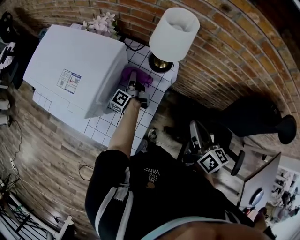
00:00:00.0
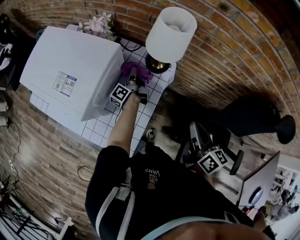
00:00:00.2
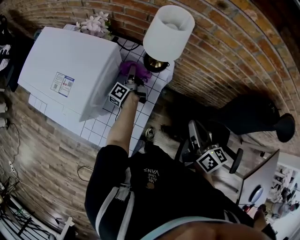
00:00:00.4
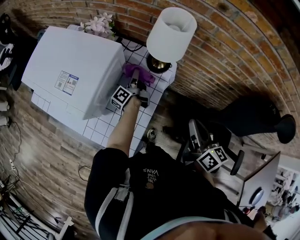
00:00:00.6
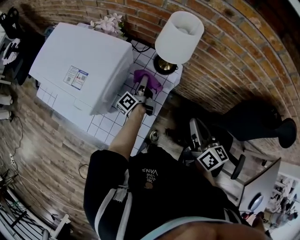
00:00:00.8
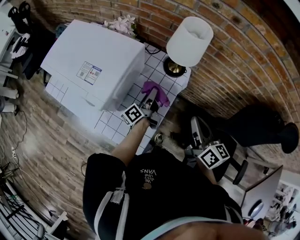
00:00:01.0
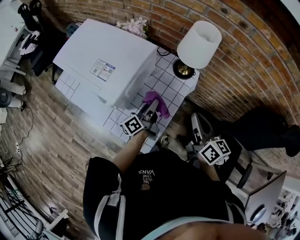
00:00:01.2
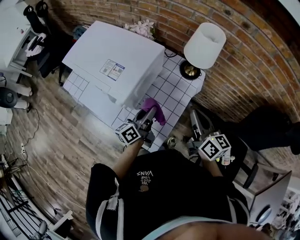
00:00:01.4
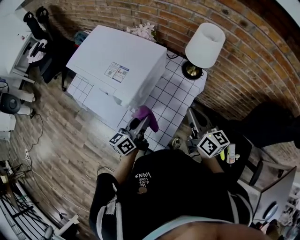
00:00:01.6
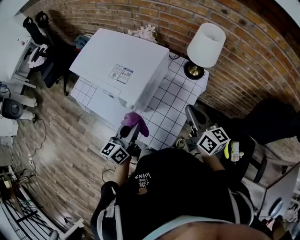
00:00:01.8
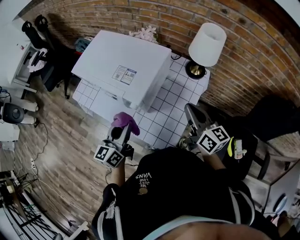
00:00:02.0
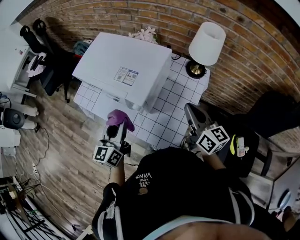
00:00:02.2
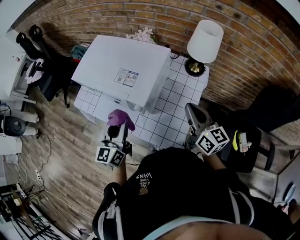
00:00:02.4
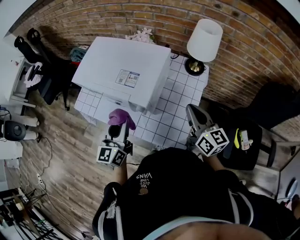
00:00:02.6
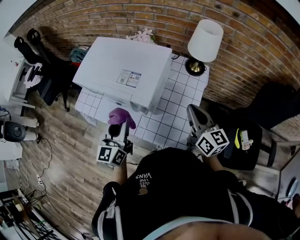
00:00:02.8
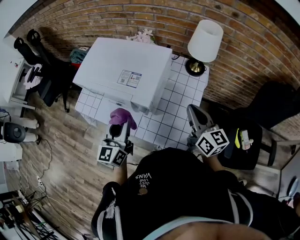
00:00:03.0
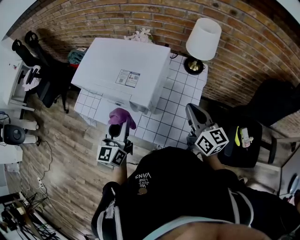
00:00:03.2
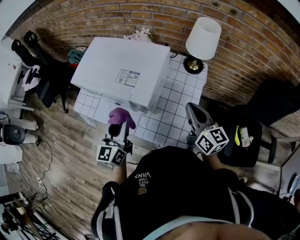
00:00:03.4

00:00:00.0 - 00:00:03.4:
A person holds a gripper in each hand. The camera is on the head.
00:00:00.0 - 00:00:01.6: The right gripper travels to the left by roughly 15 cm; the left gripper shifts roughly 30 cm backward, upward and to the left, and changes its angle by about 40 degrees.
00:00:01.6 - 00:00:03.4: The left gripper travels to the left and upward by some 20 cm, and swivels about 30 degrees. Meanwhile the right gripper shifts approximately 10 cm to the left.

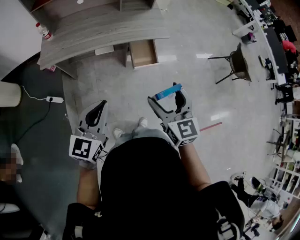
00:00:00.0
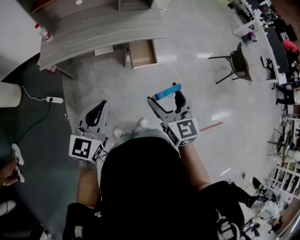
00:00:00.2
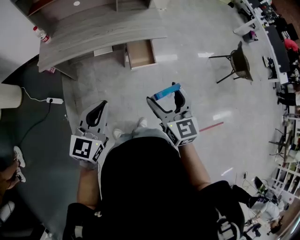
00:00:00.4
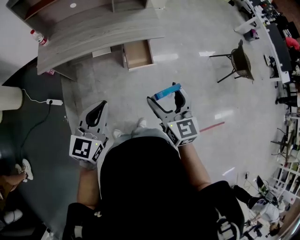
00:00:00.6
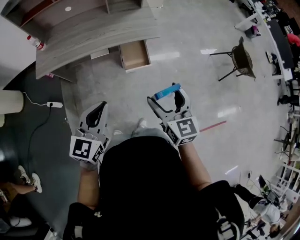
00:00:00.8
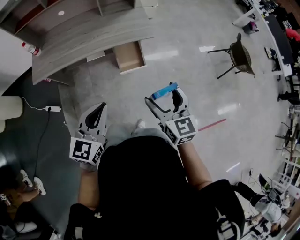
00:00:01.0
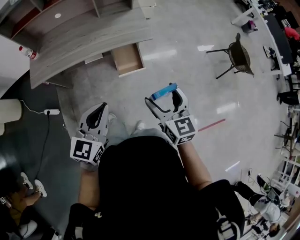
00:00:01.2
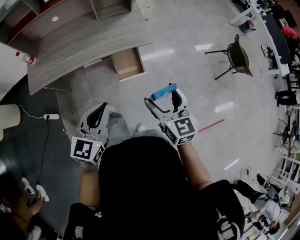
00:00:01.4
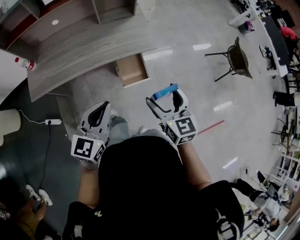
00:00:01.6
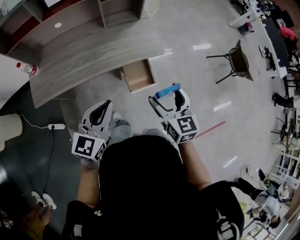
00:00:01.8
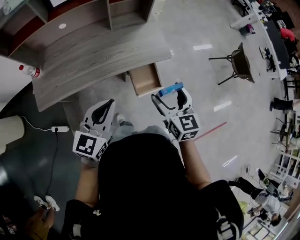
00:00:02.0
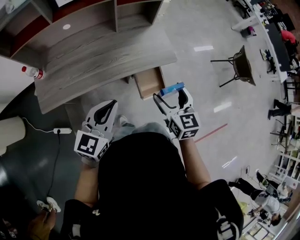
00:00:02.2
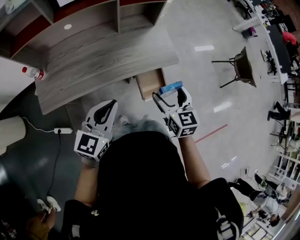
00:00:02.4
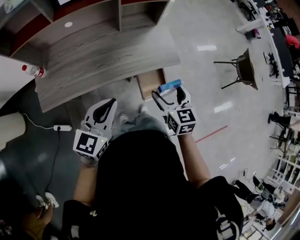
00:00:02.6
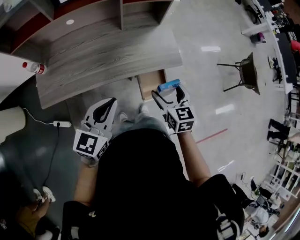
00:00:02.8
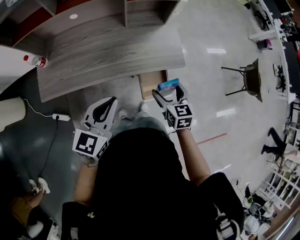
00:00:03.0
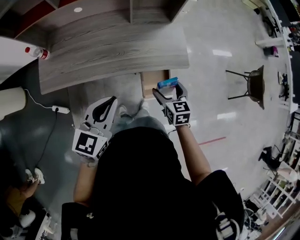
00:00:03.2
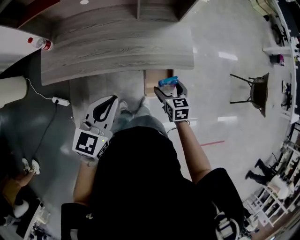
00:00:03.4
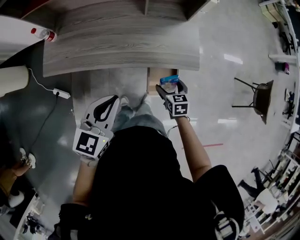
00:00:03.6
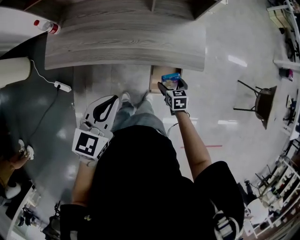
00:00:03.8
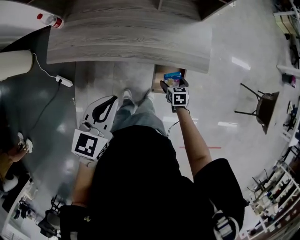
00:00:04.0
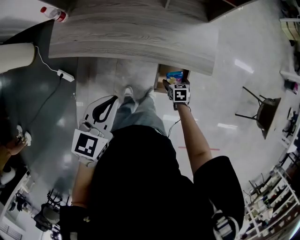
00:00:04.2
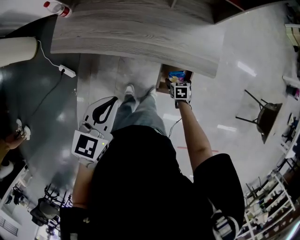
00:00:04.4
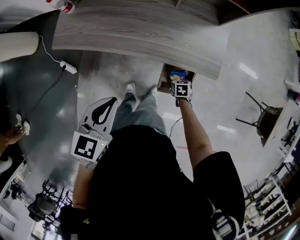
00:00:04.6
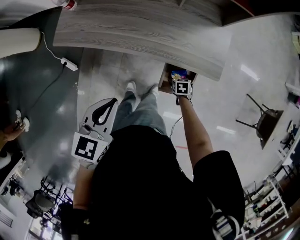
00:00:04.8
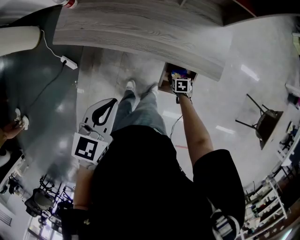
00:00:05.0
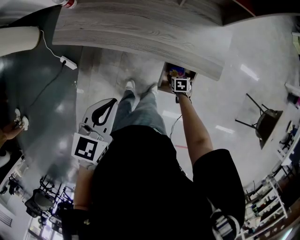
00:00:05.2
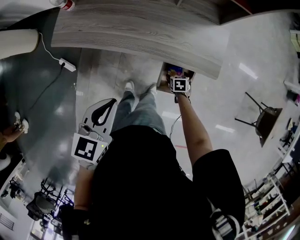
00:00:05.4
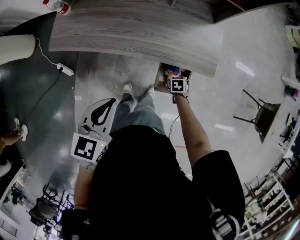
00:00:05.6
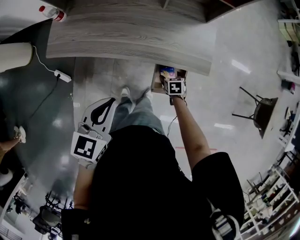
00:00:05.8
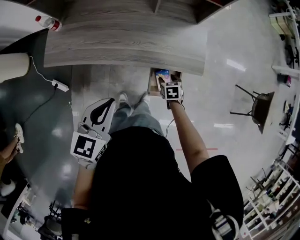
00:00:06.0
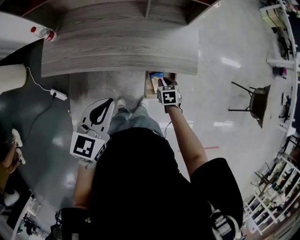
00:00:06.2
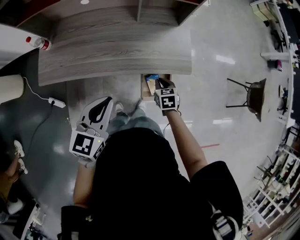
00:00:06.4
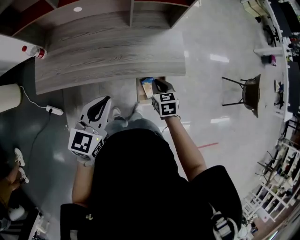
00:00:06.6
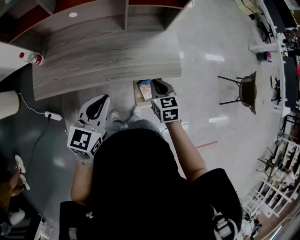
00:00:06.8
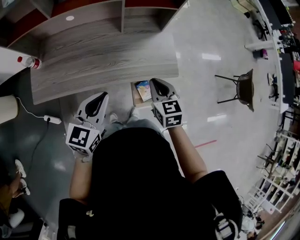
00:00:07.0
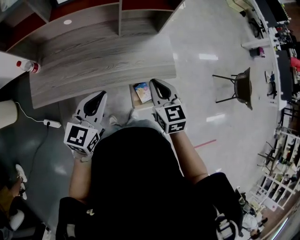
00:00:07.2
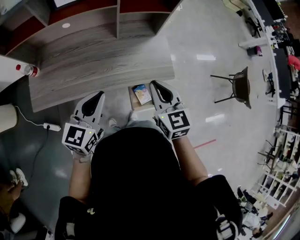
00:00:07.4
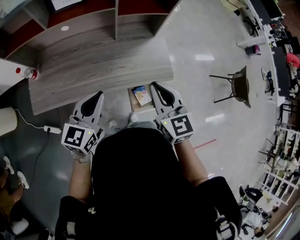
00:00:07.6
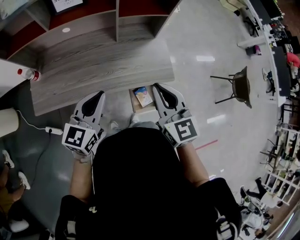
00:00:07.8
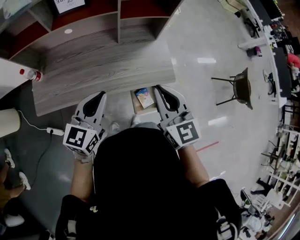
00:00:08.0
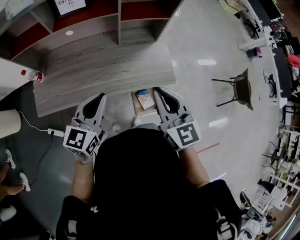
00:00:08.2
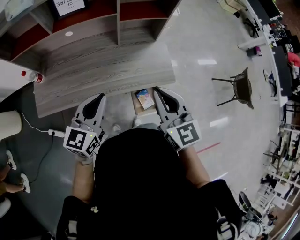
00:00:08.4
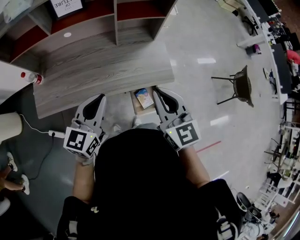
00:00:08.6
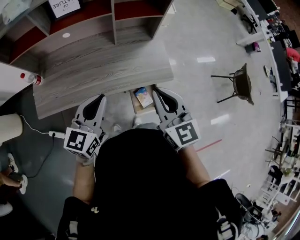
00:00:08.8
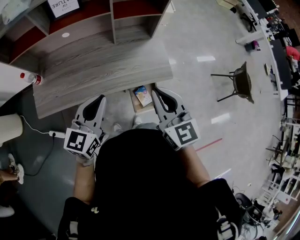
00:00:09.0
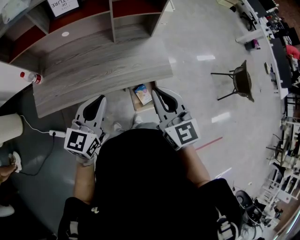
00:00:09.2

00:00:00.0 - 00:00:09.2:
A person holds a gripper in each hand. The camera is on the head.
00:00:00.0 - 00:00:01.6: The two grippers go roughly 15 cm forward and to the right.
00:00:01.6 - 00:00:03.0: The right gripper is displaced forward, downward and to the left by some 20 cm. Meanwhile the left gripper moves forward and to the left, roughly 15 cm.
00:00:03.0 - 00:00:04.6: The left gripper shifts about 5 cm downward, and changes its angle by about 30 degrees. The right gripper is displaced downward by some 30 cm, and points its fingers some 30 degrees further downward.
00:00:04.6 - 00:00:06.2: The right gripper goes some 10 cm upward, and closes up.
00:00:06.2 - 00:00:07.6: The left gripper moves forward, approximately 10 cm. Meanwhile the right gripper is displaced upward by roughly 35 cm, and angles its fingers upward, by approximately 40 degrees.
00:00:07.6 - 00:00:09.2: The right gripper changes place by approximately 5 cm.

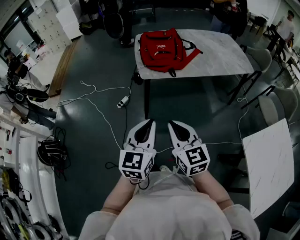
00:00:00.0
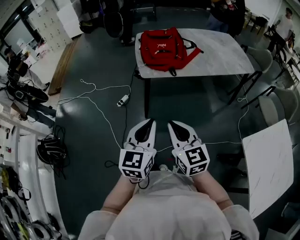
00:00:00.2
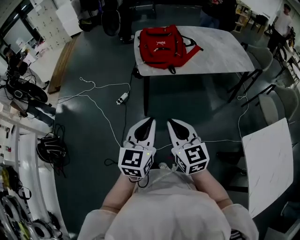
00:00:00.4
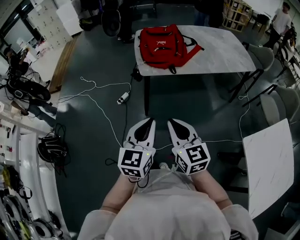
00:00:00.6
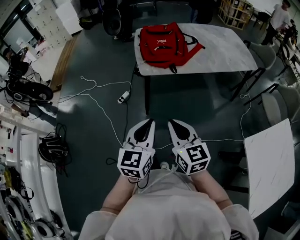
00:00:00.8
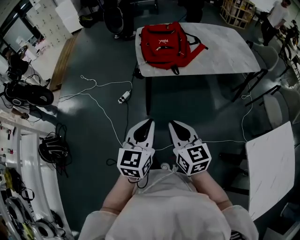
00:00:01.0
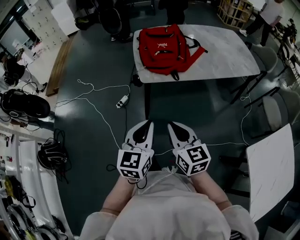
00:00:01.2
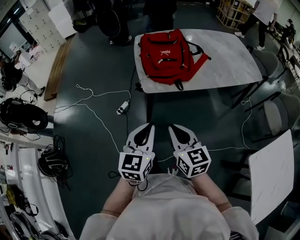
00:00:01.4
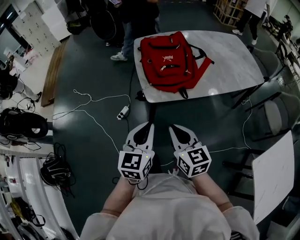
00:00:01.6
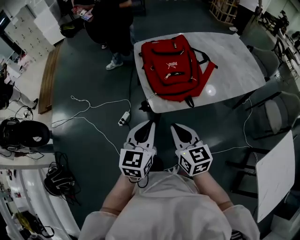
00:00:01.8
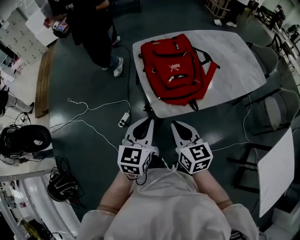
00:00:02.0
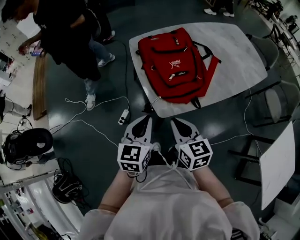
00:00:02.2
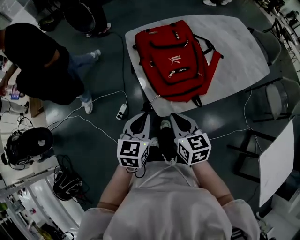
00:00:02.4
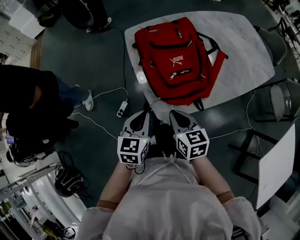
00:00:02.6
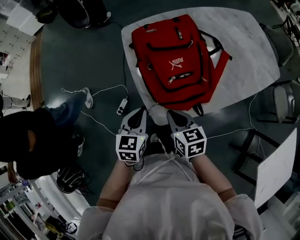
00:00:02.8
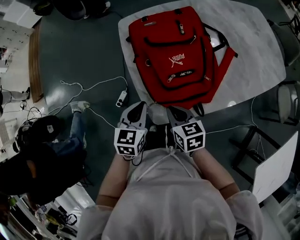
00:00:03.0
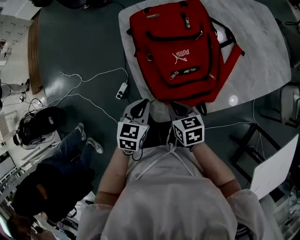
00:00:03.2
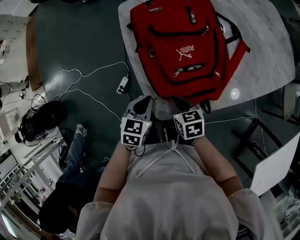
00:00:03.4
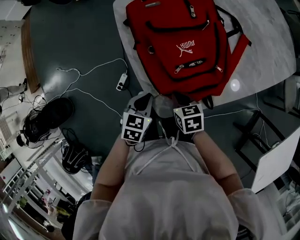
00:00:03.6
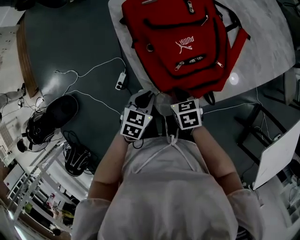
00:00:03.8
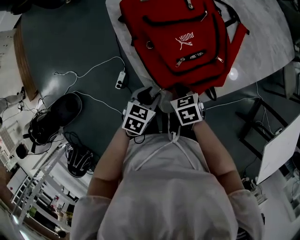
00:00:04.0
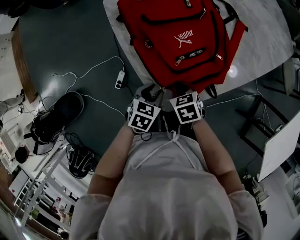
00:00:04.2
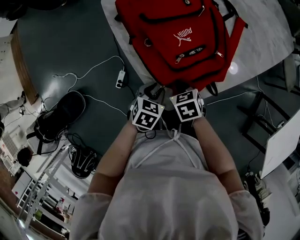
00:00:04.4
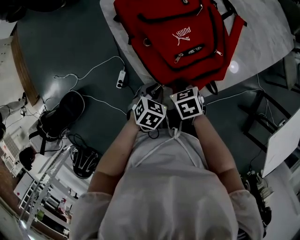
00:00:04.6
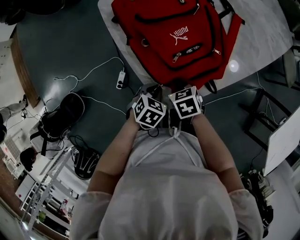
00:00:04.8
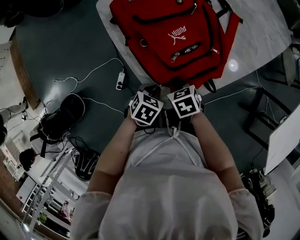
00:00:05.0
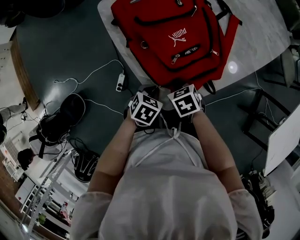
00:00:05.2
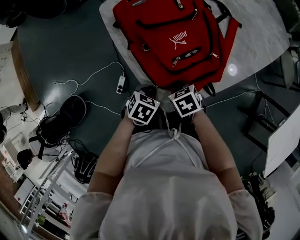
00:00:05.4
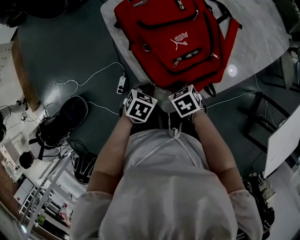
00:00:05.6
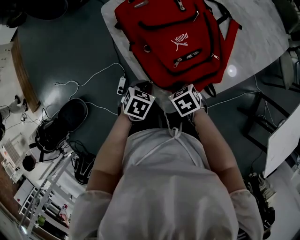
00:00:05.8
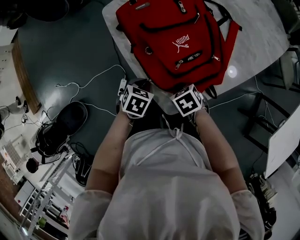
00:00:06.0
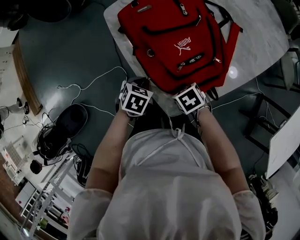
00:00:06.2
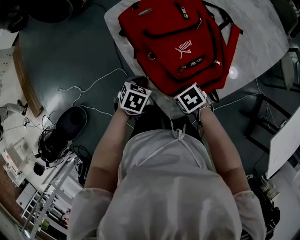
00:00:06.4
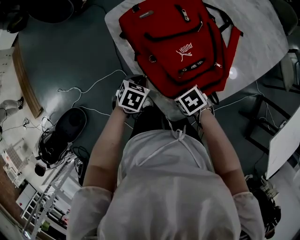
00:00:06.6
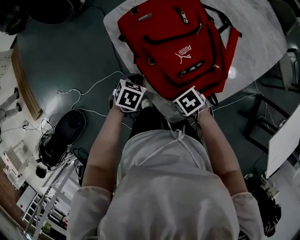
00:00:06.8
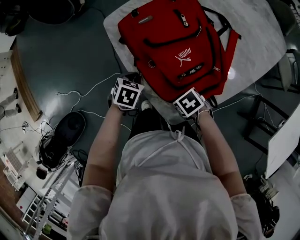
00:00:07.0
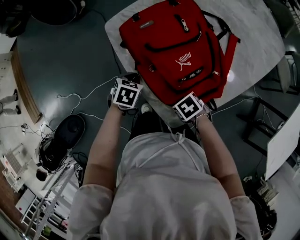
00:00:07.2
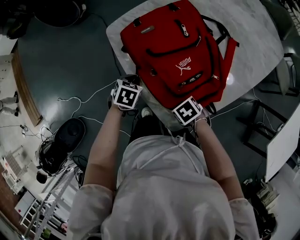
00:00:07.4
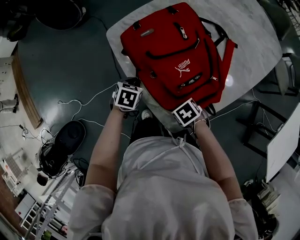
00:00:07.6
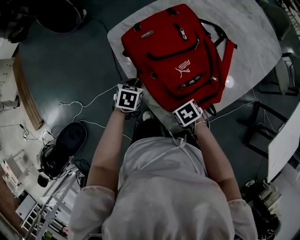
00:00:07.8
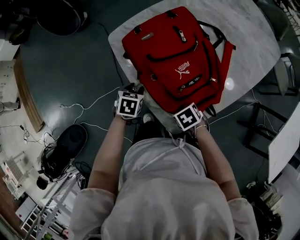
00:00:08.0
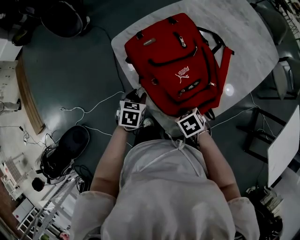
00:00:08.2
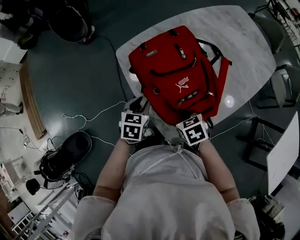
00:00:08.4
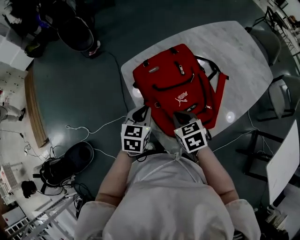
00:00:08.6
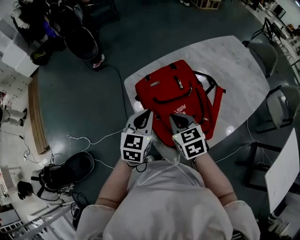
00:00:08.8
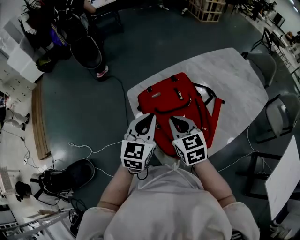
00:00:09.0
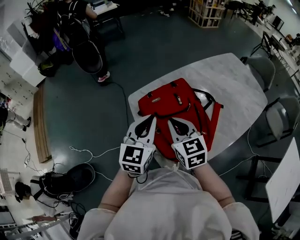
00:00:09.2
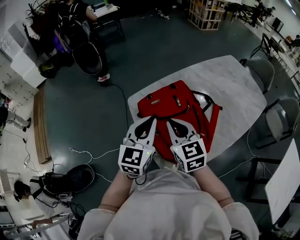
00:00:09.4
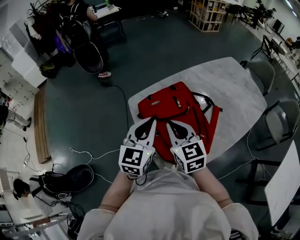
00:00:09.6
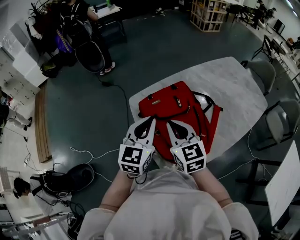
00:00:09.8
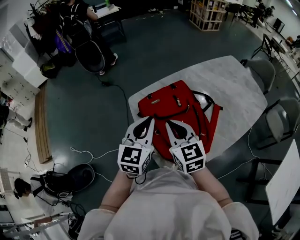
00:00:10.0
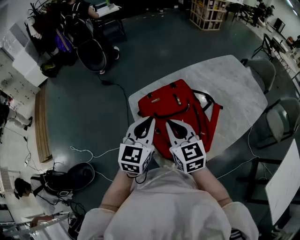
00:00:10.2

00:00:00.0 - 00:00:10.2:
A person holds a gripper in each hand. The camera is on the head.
00:00:00.0 - 00:00:01.4: The two grippers go some 15 cm forward.
00:00:01.4 - 00:00:03.0: The left gripper is displaced forward by about 40 cm, and changes its angle by about 20 degrees, while the right gripper travels forward and downward by approximately 40 cm, and rotates some 30 degrees.
00:00:03.0 - 00:00:04.4: The two grippers go roughly 10 cm downward. The right gripper turns by approximately 20 degrees; the left gripper rotates about 40 degrees, and opens its fingers.
00:00:04.4 - 00:00:05.8: The left gripper changes place by about 5 cm, and closes its fingers.
00:00:05.8 - 00:00:07.2: The left gripper changes place by approximately 15 cm.
00:00:07.2 - 00:00:08.8: Both grippers travel together upward, roughly 25 cm. The left gripper tips its fingers upward by roughly 40 degrees, and opens, then closes once more. Meanwhile the right gripper angles its fingers upward, by approximately 40 degrees.
00:00:08.8 - 00:00:10.2: Both grippers move upward, roughly 10 cm. The right gripper turns by approximately 20 degrees.
